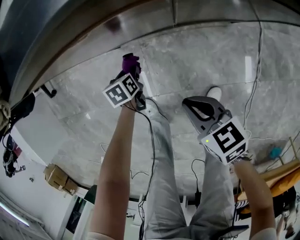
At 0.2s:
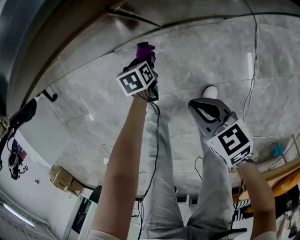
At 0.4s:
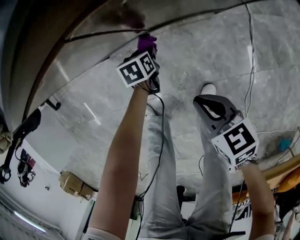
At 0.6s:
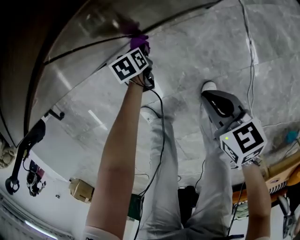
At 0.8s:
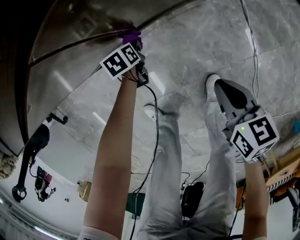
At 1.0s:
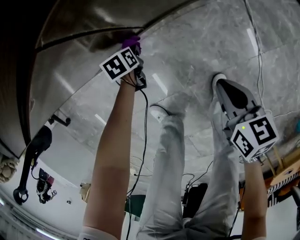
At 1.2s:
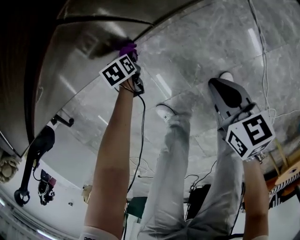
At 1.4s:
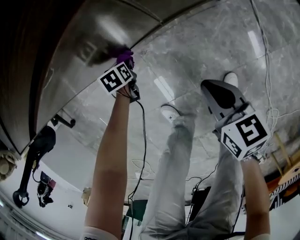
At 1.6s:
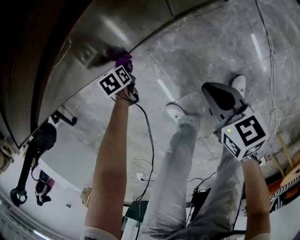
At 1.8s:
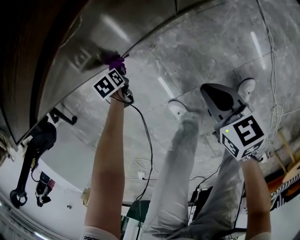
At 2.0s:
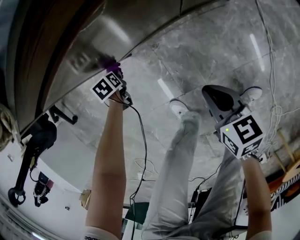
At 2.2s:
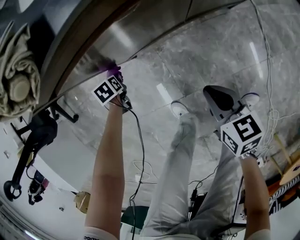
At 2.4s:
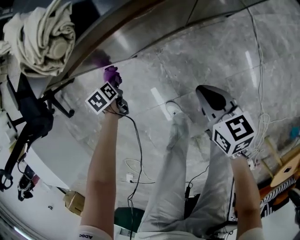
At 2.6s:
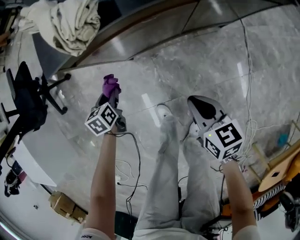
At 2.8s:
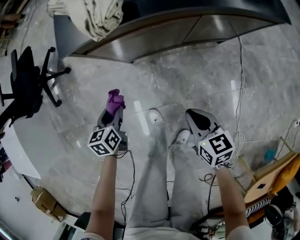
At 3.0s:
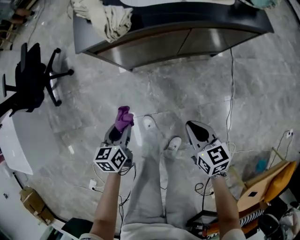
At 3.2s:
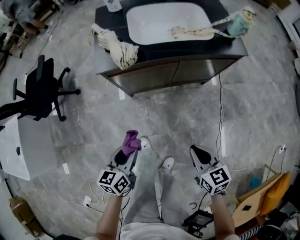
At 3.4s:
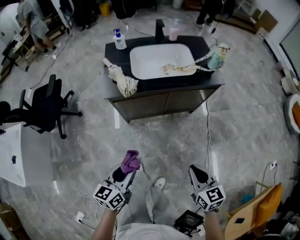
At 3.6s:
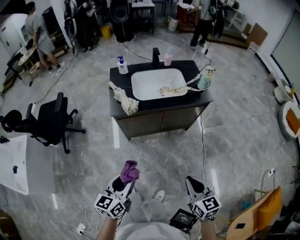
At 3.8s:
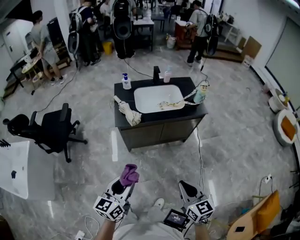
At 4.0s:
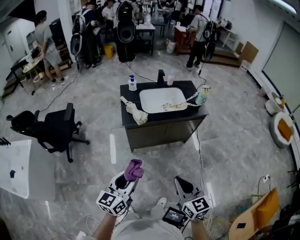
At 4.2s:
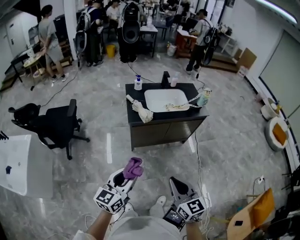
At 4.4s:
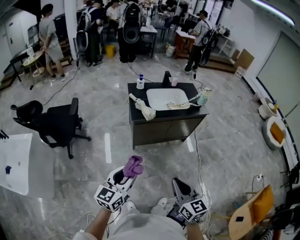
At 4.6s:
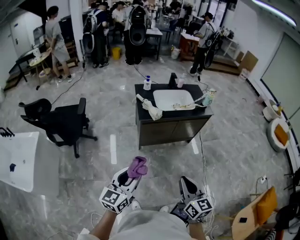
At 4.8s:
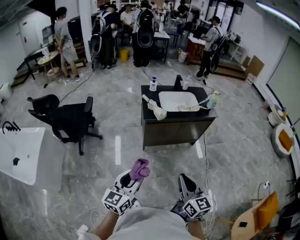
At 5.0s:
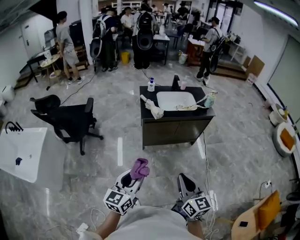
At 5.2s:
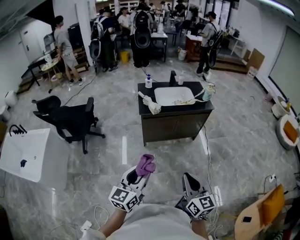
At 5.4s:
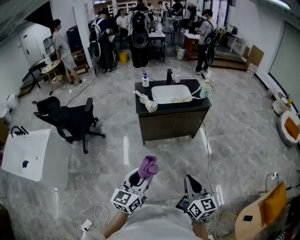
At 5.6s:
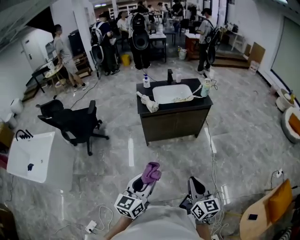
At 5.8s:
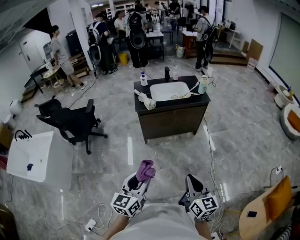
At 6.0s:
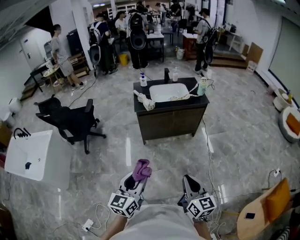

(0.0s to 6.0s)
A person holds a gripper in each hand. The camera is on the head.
0.0s - 1.6s: The right gripper swivels approximately 30 degrees.
1.6s - 3.0s: The right gripper moves upward, approximately 20 cm. Meanwhile the left gripper moves upward, some 35 cm, and tips its fingers upward by some 30 degrees.
3.0s - 4.4s: Both grippers move upward and backward, some 60 cm. The right gripper turns by about 30 degrees. The left gripper tips its fingers upward by about 40 degrees.
4.4s - 6.0s: The left gripper moves backward and to the right, about 25 cm, while the right gripper shifts about 25 cm to the right and backward.

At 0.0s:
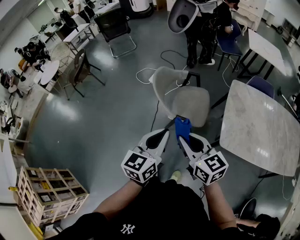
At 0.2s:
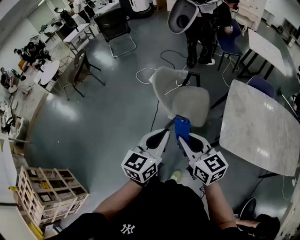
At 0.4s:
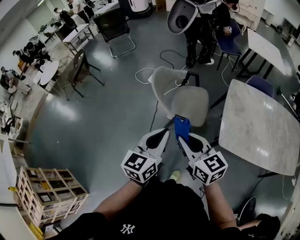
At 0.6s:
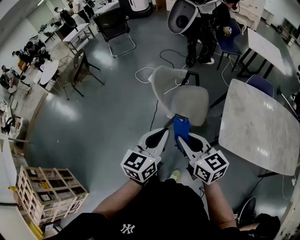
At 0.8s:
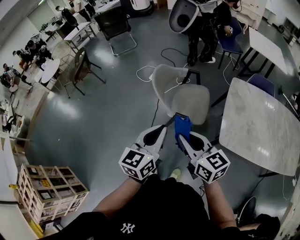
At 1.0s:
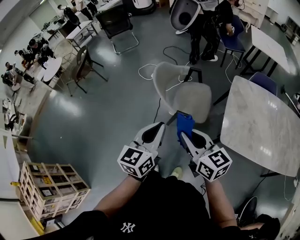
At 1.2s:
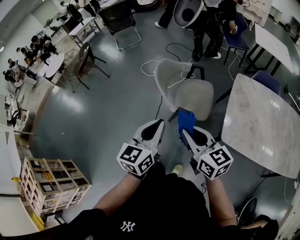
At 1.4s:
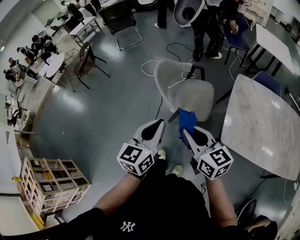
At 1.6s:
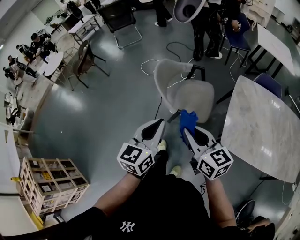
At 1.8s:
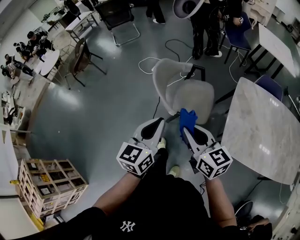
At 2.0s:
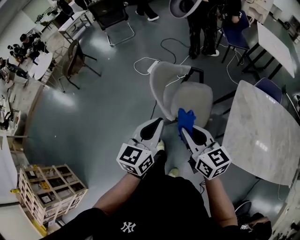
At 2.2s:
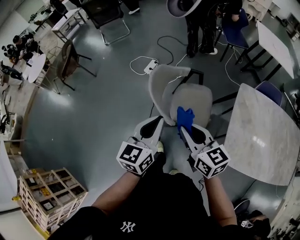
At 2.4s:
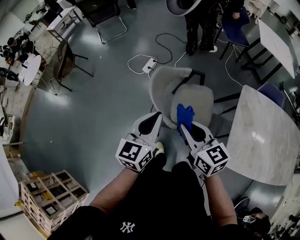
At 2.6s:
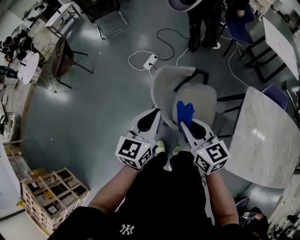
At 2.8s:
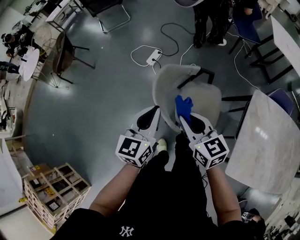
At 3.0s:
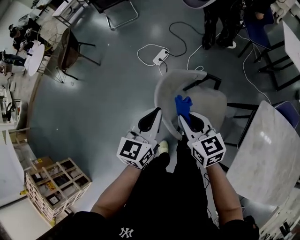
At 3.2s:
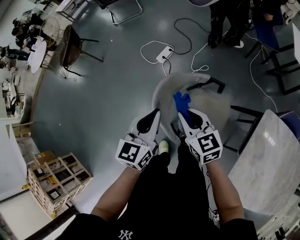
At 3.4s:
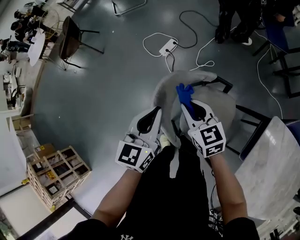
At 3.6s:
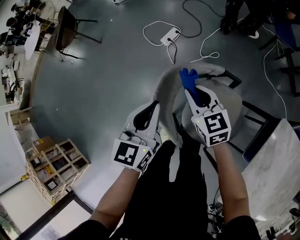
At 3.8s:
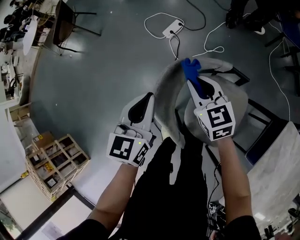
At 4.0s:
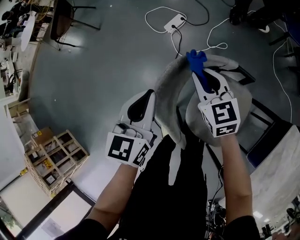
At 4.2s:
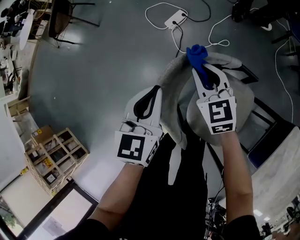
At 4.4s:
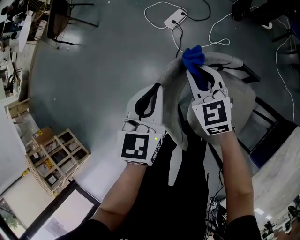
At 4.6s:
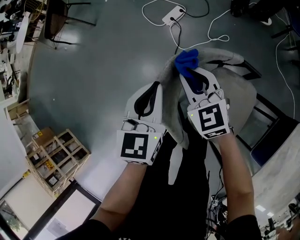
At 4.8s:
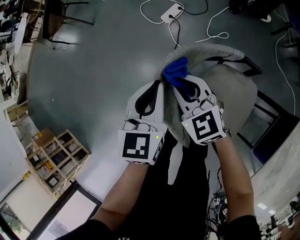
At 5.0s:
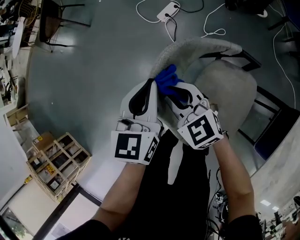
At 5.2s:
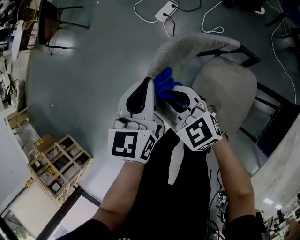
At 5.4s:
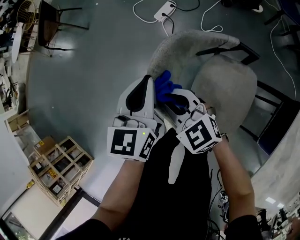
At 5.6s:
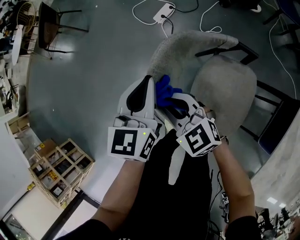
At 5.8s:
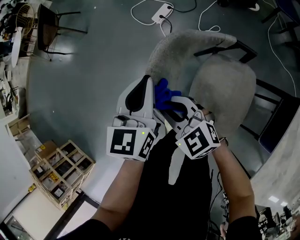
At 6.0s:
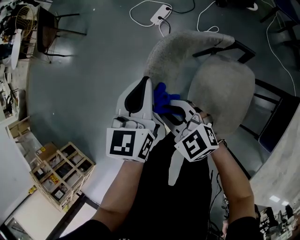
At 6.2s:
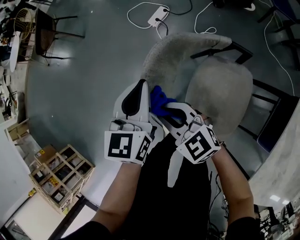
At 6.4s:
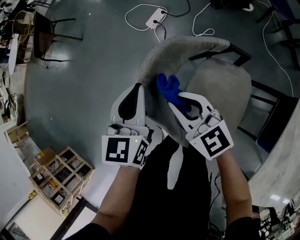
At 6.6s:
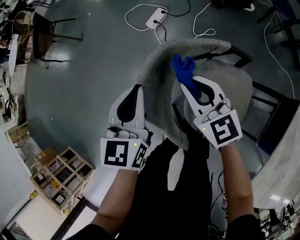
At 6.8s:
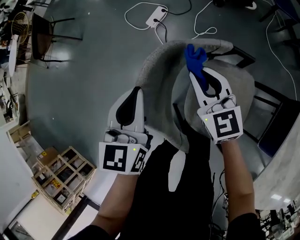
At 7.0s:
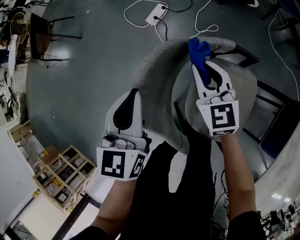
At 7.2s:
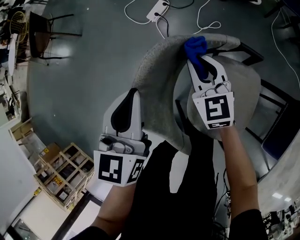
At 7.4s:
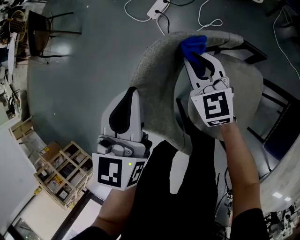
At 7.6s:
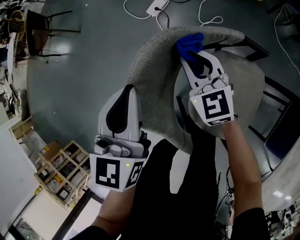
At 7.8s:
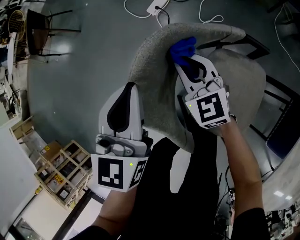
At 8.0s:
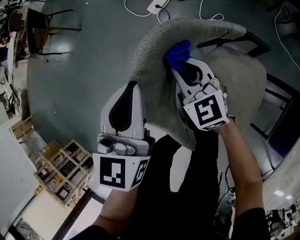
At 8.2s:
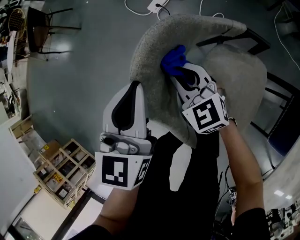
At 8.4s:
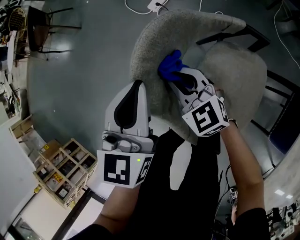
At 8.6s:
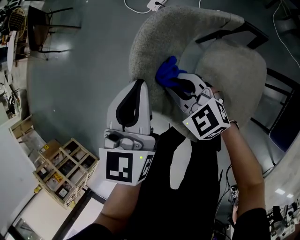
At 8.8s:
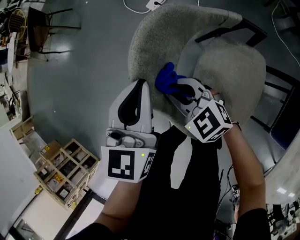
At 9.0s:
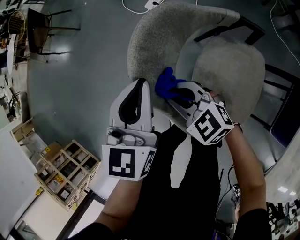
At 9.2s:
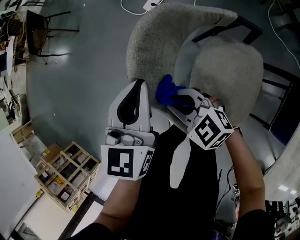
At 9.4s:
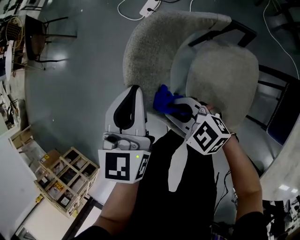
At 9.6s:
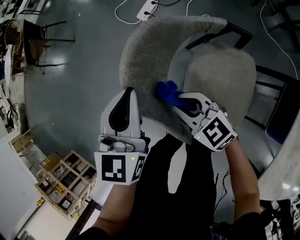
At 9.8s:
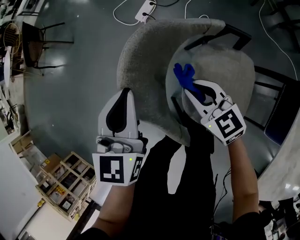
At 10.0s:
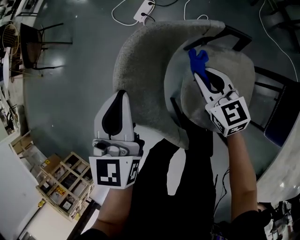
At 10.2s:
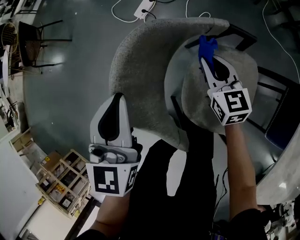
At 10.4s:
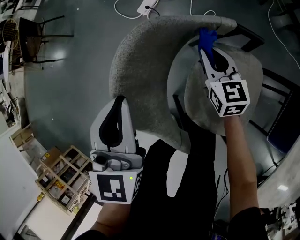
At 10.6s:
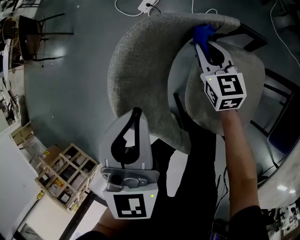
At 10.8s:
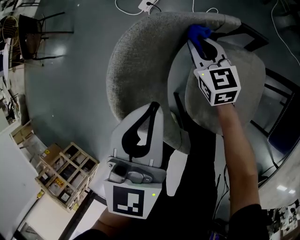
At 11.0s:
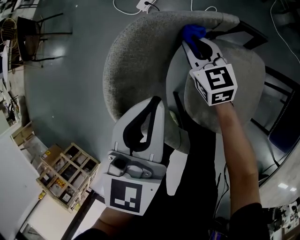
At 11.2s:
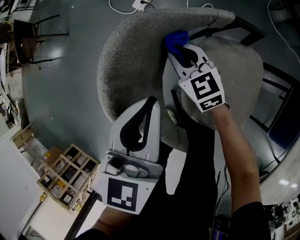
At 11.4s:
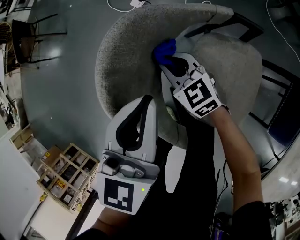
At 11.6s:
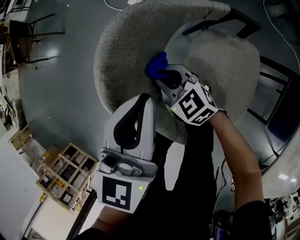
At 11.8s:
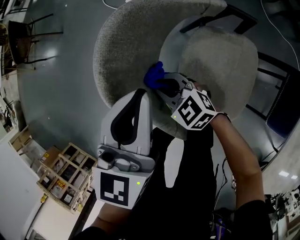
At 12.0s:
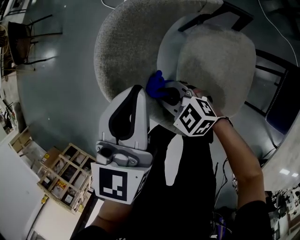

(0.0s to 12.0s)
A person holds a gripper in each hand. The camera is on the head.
0.0s - 1.6s: The right gripper moves some 5 cm.
1.6s - 3.0s: Both grippers travel together forward, about 40 cm.
3.0s - 4.4s: Both grippers move downward and forward, approximately 30 cm. The left gripper turns by some 20 degrees; the right gripper changes its angle by about 20 degrees.
4.4s - 6.0s: The right gripper is displaced backward and to the left by approximately 20 cm, and changes its angle by approximately 20 degrees.
6.0s - 7.6s: The right gripper shifts approximately 20 cm forward, to the right and downward, and rotates some 30 degrees.
7.6s - 9.0s: The left gripper is displaced backward by some 5 cm. The right gripper moves backward and to the left, approximately 20 cm, and changes its angle by some 30 degrees.
9.0s - 10.4s: The right gripper heads to the right and forward, covering some 25 cm, and swivels roughly 50 degrees.
10.4s - 12.0s: The left gripper changes place by approximately 5 cm. The right gripper travels to the left and backward by roughly 25 cm, and swivels approximately 50 degrees.

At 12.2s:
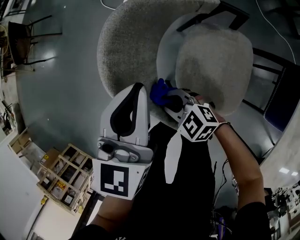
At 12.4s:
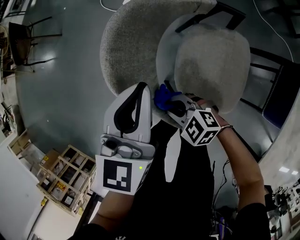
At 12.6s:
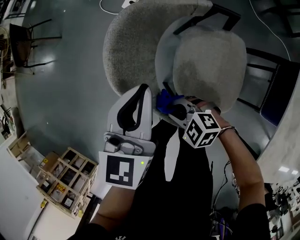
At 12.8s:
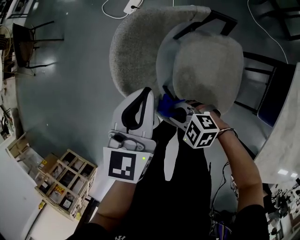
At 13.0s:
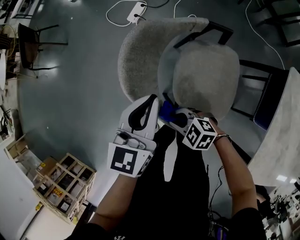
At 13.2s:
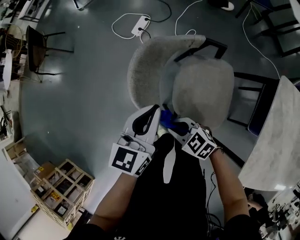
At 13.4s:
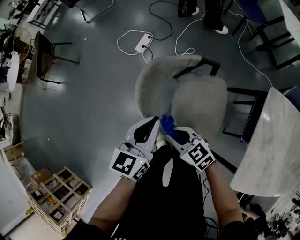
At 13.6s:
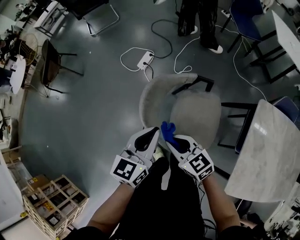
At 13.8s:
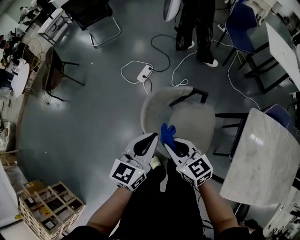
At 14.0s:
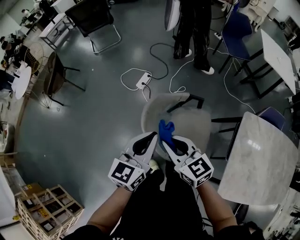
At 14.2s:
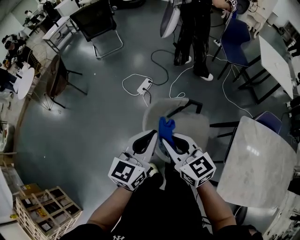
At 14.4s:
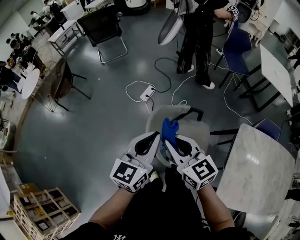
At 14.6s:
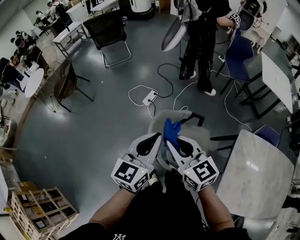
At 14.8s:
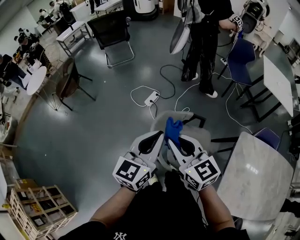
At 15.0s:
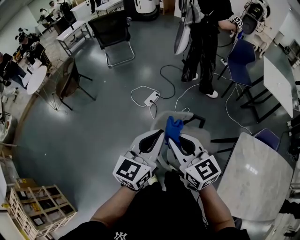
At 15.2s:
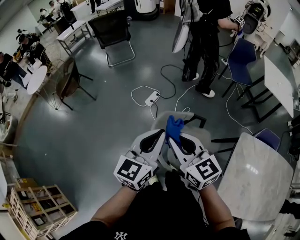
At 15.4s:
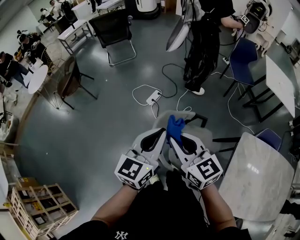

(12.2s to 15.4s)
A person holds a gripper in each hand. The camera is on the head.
12.2s - 13.8s: The left gripper shifts approximately 20 cm upward. Meanwhile the right gripper goes roughly 35 cm upward, and changes its angle by some 40 degrees.
13.8s - 15.4s: Both grippers travel together upward, roughly 20 cm.

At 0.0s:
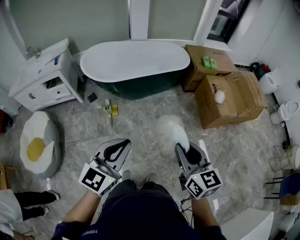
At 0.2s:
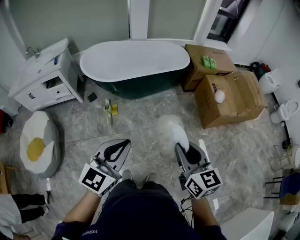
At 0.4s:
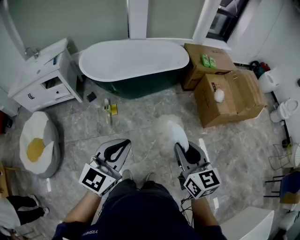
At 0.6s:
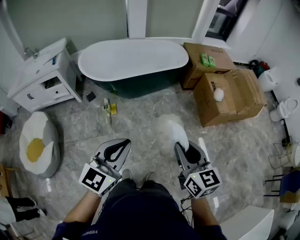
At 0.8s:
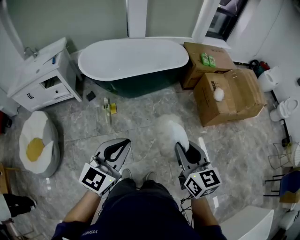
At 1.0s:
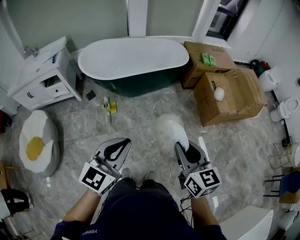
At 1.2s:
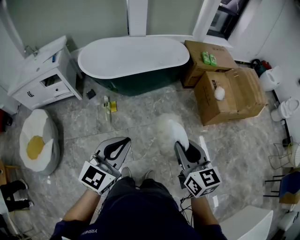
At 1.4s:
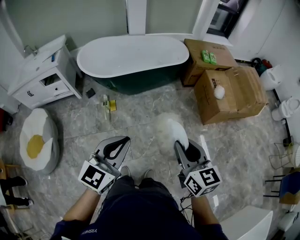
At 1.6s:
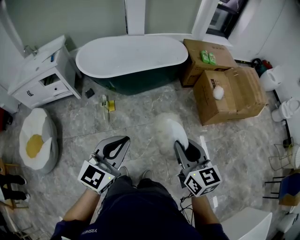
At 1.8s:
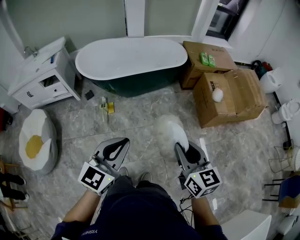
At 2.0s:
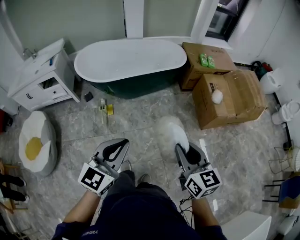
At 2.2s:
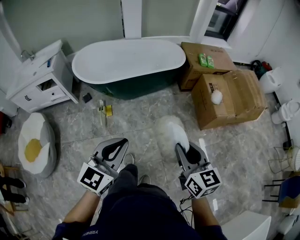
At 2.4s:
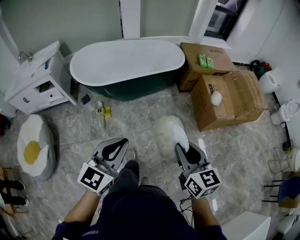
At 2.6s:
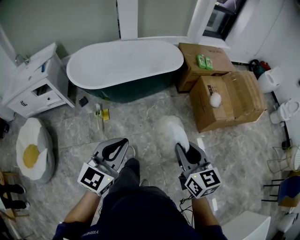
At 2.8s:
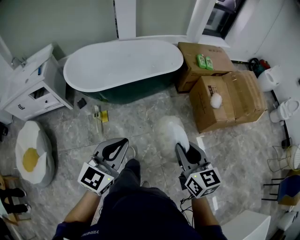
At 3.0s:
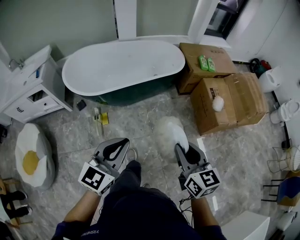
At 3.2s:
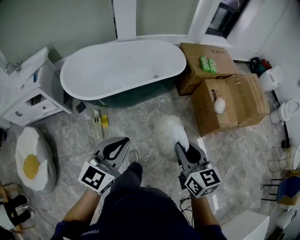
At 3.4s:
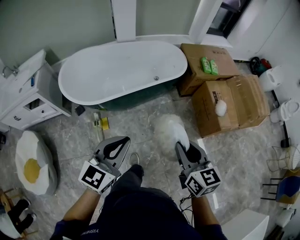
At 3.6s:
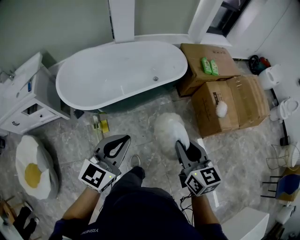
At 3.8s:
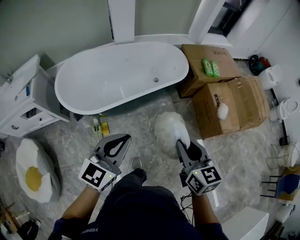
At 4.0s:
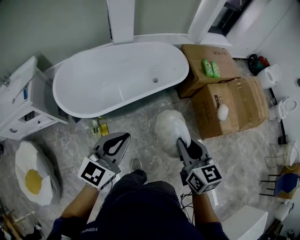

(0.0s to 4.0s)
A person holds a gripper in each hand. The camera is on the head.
0.0s - 1.4s: The grippers stay close to where they were, moving slightly.
1.4s - 2.6s: Both grippers travel together forward, roughly 10 cm.
2.6s - 4.0s: The grippers both shift forward and to the left by roughly 30 cm.
